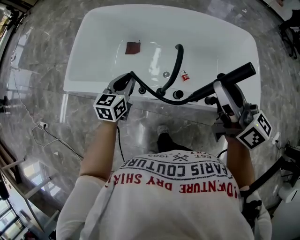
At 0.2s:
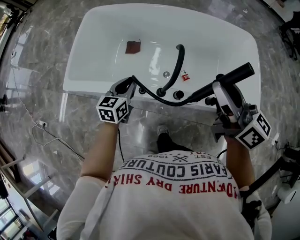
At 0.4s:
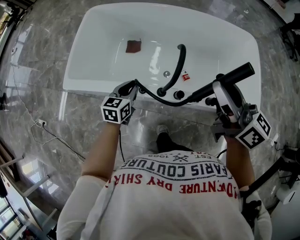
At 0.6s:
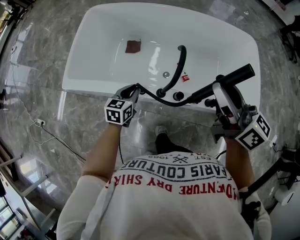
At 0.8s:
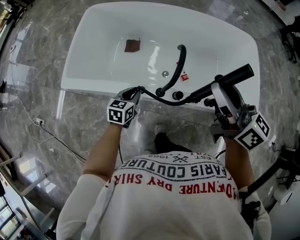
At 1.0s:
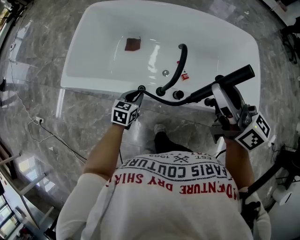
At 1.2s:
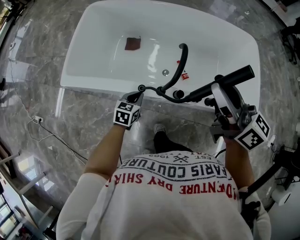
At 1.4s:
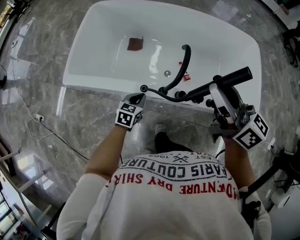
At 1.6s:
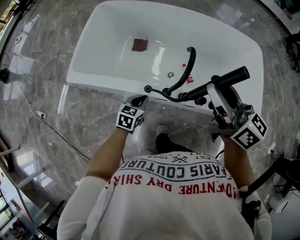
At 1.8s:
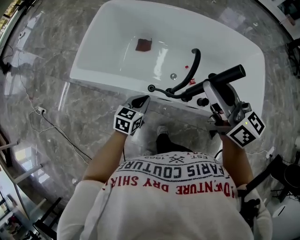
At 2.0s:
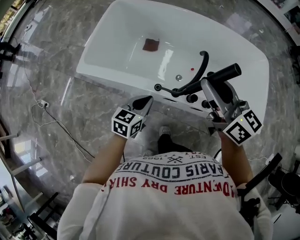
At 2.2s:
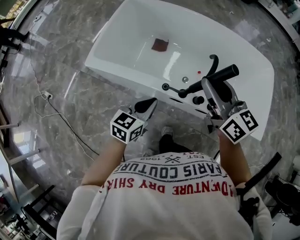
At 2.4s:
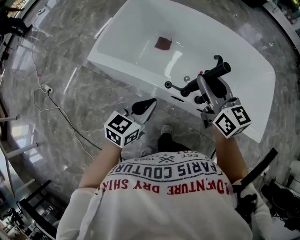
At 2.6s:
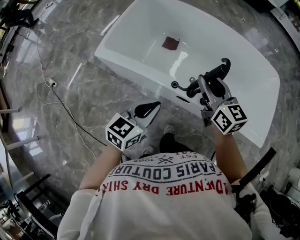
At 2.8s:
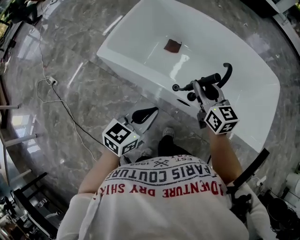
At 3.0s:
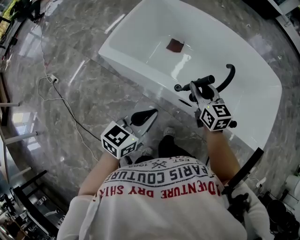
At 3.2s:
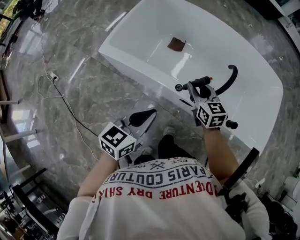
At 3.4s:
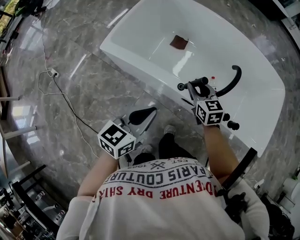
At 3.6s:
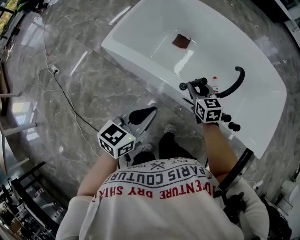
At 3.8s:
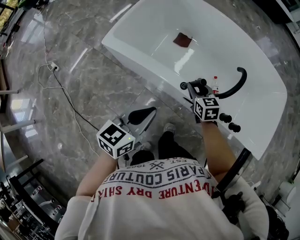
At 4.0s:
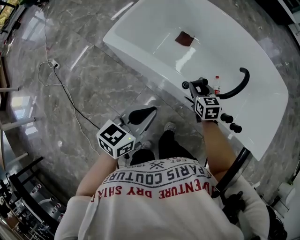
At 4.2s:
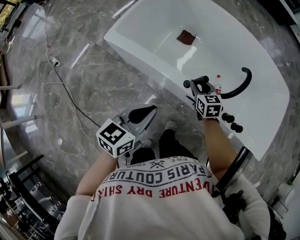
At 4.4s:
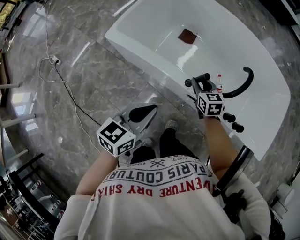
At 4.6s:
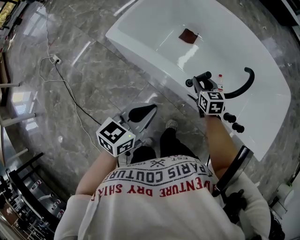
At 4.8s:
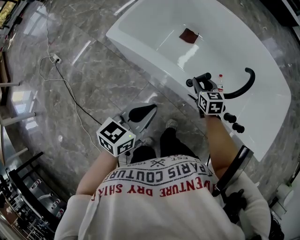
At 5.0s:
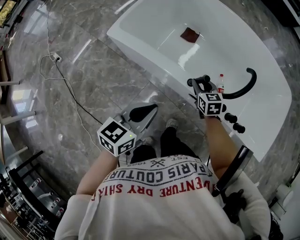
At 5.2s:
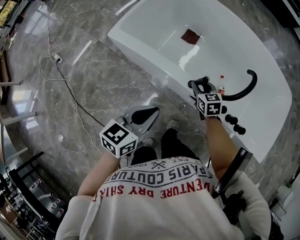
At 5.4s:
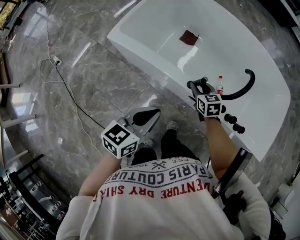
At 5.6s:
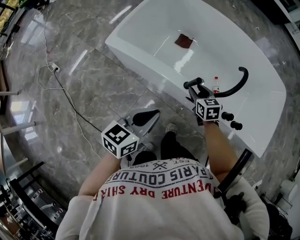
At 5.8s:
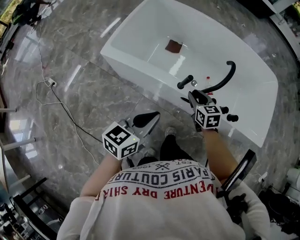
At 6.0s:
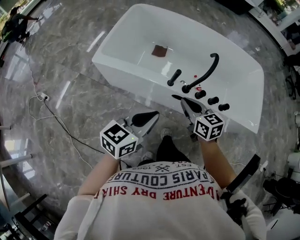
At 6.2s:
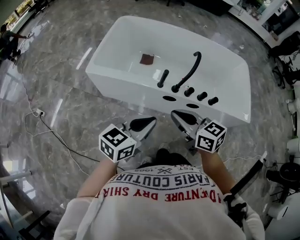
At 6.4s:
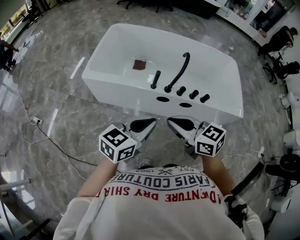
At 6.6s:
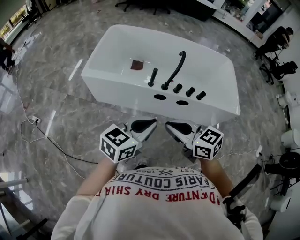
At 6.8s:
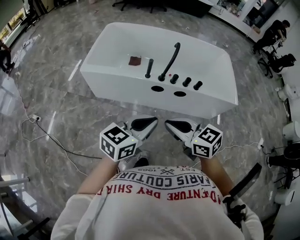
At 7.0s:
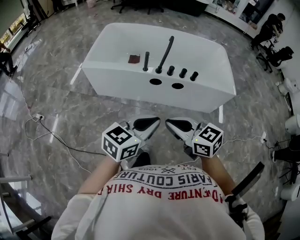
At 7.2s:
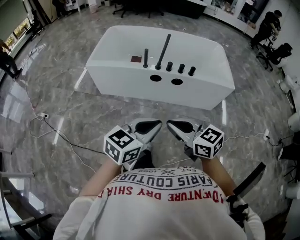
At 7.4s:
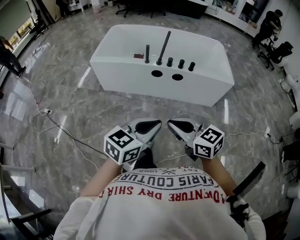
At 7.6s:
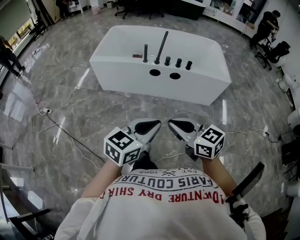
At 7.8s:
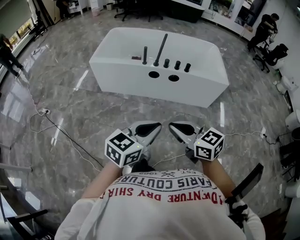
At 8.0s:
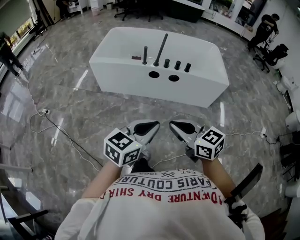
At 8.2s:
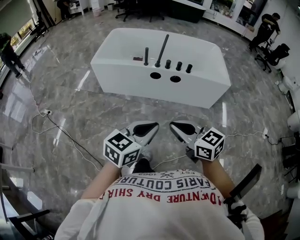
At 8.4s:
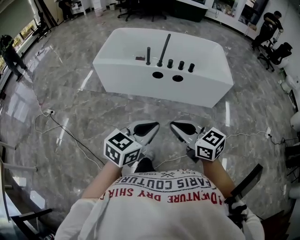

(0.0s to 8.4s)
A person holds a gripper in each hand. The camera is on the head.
0.0s - 1.4s: The left gripper heads downward and backward, covering roughly 15 cm, and changes its angle by some 20 degrees.
1.4s - 2.8s: The left gripper moves upward, backward and to the left, about 25 cm, and rotates some 20 degrees. The right gripper shifts about 20 cm to the left and downward, and rotates approximately 20 degrees.
2.8s - 4.2s: The right gripper goes approximately 20 cm downward, and turns by roughly 20 degrees.
4.2s - 5.6s: The grippers make only small movements.
5.6s - 7.0s: The left gripper moves backward and upward, approximately 35 cm, and turns by approximately 30 degrees. The right gripper travels backward and upward by some 60 cm, turns by approximately 20 degrees, and closes its fingers.
7.0s - 8.4s: Both grippers travel together backward, about 15 cm.

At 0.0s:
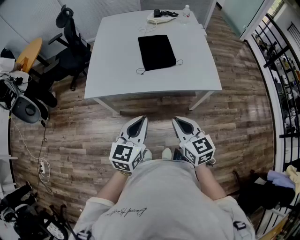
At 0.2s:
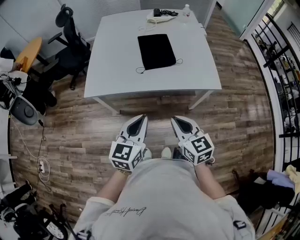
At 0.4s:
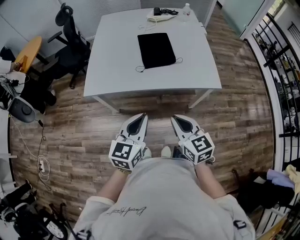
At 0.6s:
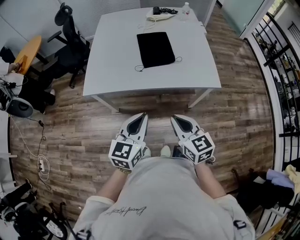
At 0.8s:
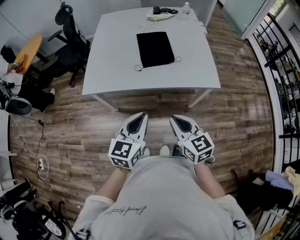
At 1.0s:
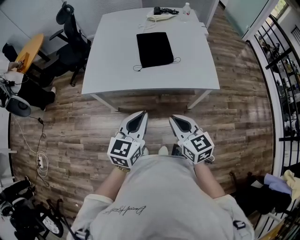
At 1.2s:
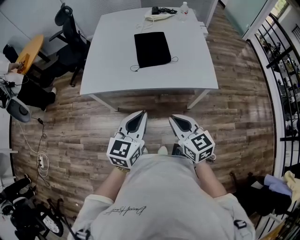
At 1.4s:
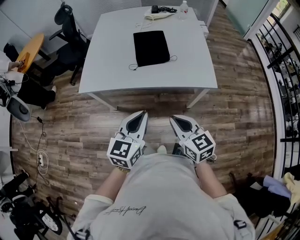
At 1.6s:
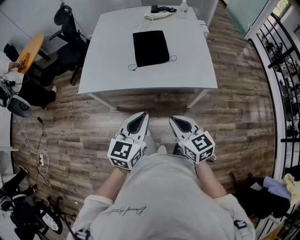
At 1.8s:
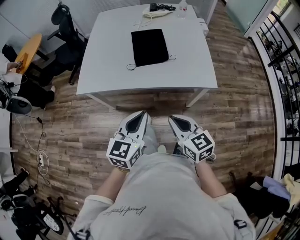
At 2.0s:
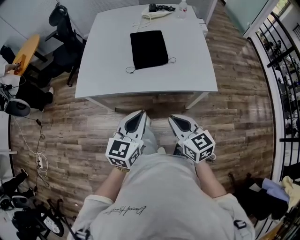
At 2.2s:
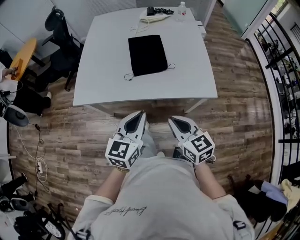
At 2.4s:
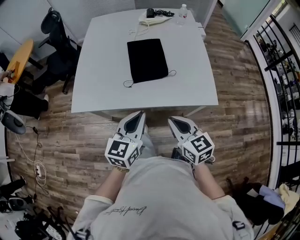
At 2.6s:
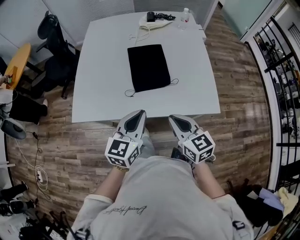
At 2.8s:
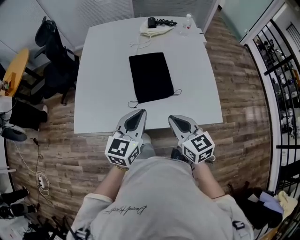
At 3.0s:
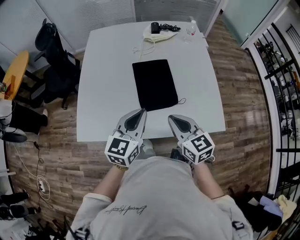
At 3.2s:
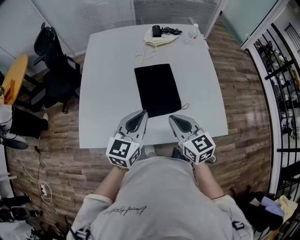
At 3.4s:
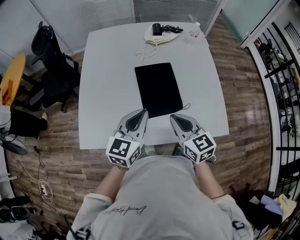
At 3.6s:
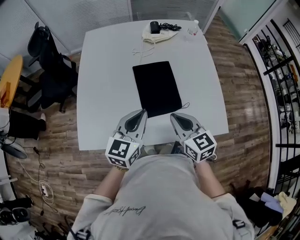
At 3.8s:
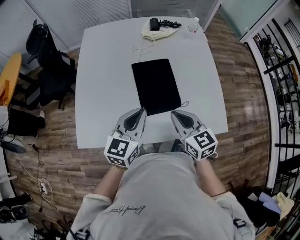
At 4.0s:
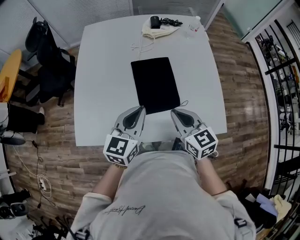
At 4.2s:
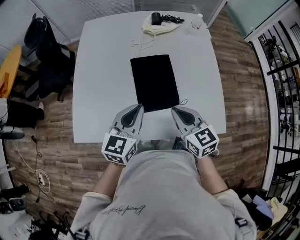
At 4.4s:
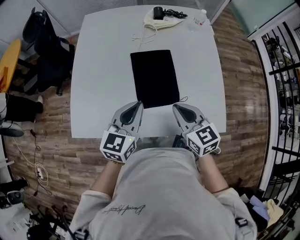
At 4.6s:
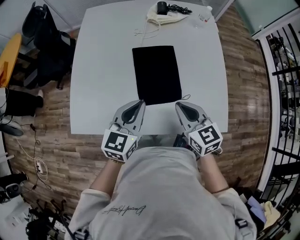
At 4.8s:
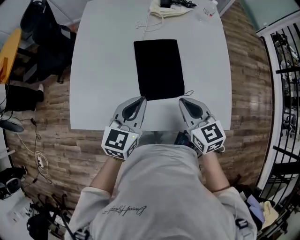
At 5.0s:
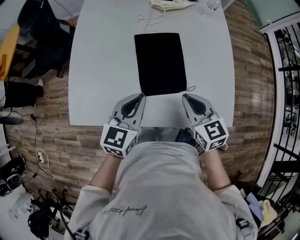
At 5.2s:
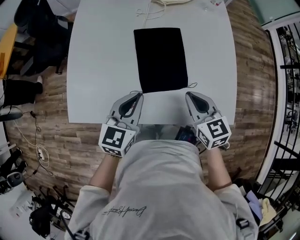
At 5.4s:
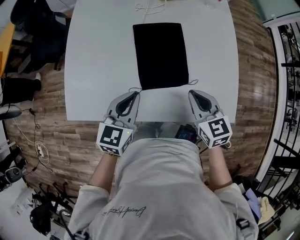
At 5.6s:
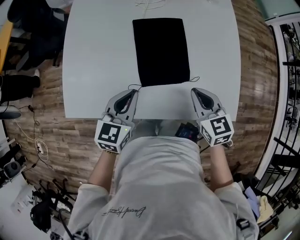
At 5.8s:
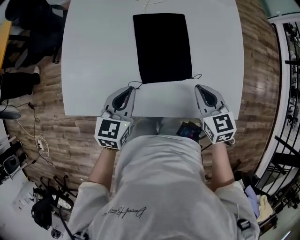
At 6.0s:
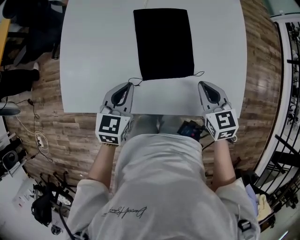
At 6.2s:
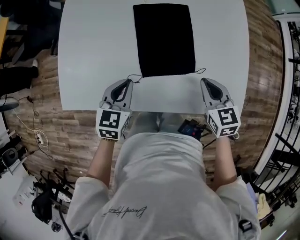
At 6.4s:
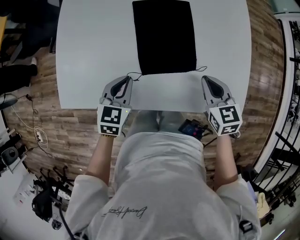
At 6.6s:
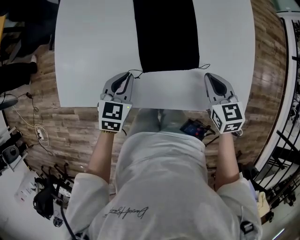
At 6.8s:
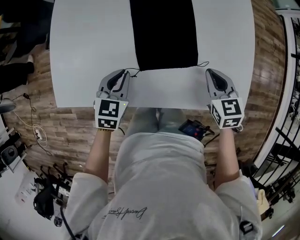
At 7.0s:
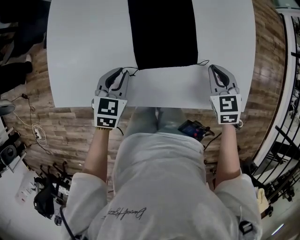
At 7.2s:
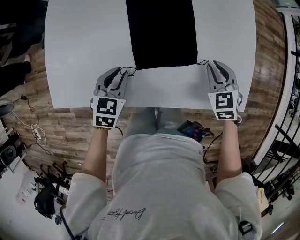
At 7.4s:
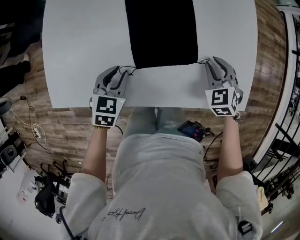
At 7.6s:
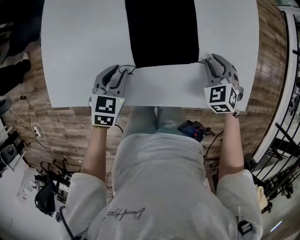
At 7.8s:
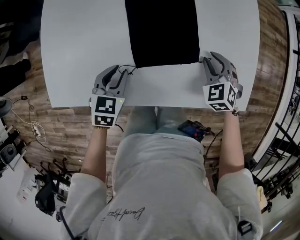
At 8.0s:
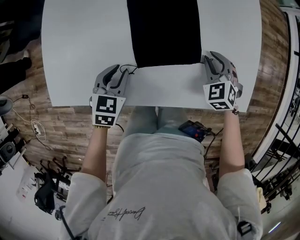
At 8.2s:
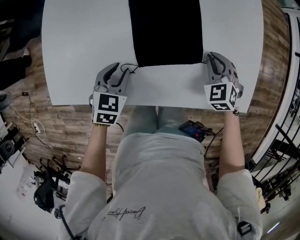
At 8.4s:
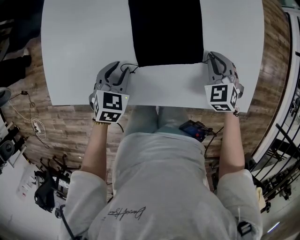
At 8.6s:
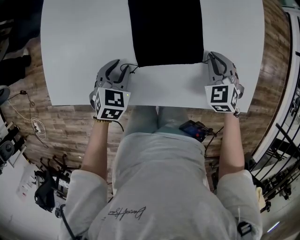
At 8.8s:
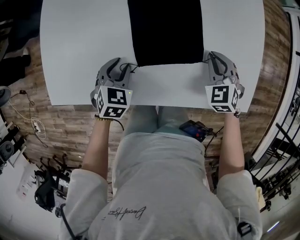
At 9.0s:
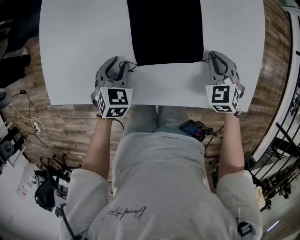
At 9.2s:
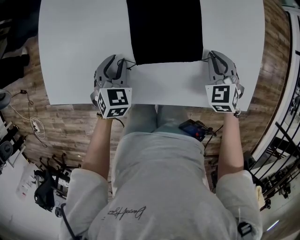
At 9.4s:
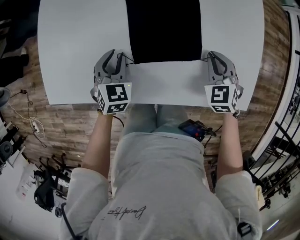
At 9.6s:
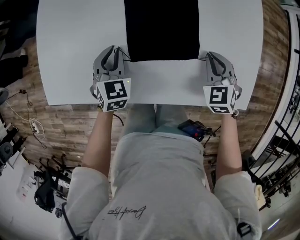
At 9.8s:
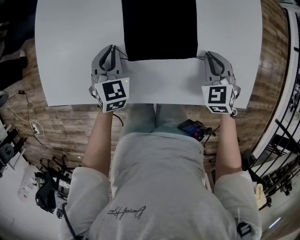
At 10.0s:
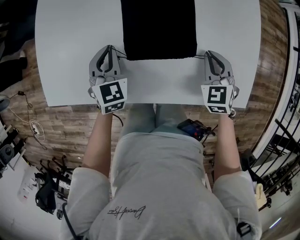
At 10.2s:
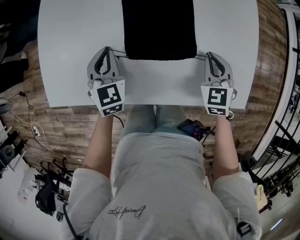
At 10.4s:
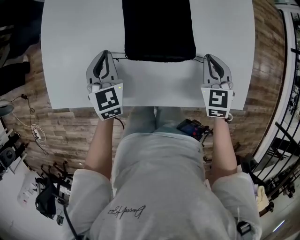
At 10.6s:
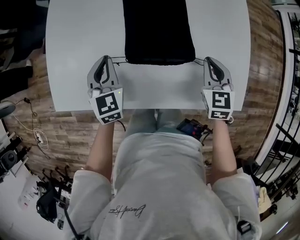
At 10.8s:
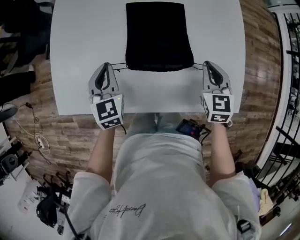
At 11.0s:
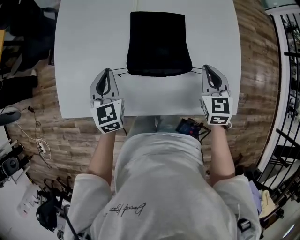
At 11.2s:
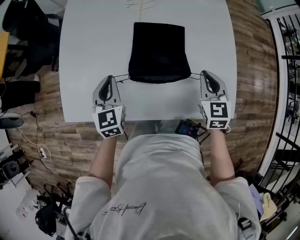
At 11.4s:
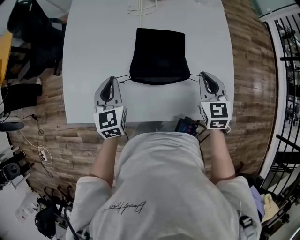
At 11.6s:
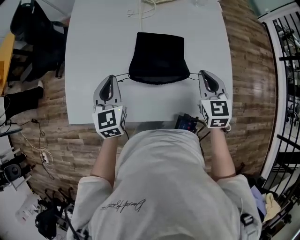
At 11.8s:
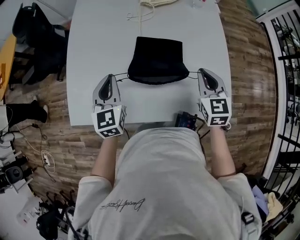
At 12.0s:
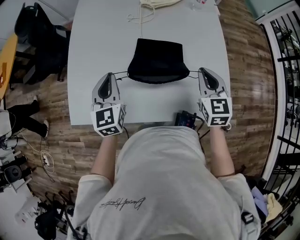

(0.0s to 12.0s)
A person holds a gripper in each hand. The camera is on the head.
0.0s - 1.6s: Both grippers move to the right, approximately 5 cm.
1.6s - 3.0s: Both grippers move forward, approximately 30 cm.
3.0s - 4.4s: The two grippers go approximately 5 cm forward.
4.4s - 6.0s: The right gripper moves downward and to the right, some 10 cm, while the left gripper is displaced downward and to the left by about 15 cm.
6.0s - 7.6s: The two grippers go approximately 10 cm downward. The left gripper opens its fingers, while the right gripper changes its angle by about 40 degrees, and opens its fingers.
7.6s - 9.0s: The right gripper closes its fingers.
9.0s - 10.4s: The left gripper goes approximately 10 cm upward and forward, rotates about 30 degrees, and closes its fingers, while the right gripper changes its angle by roughly 20 degrees.
10.4s - 12.0s: Both grippers move upward, approximately 15 cm.

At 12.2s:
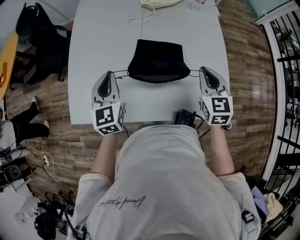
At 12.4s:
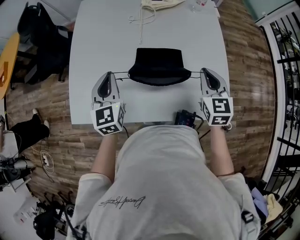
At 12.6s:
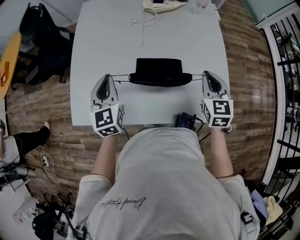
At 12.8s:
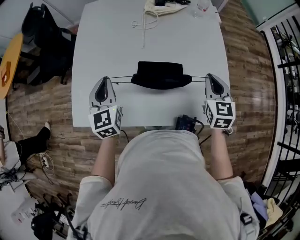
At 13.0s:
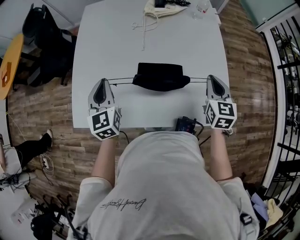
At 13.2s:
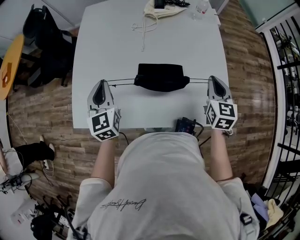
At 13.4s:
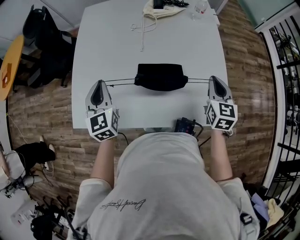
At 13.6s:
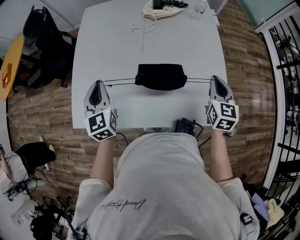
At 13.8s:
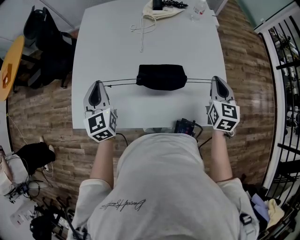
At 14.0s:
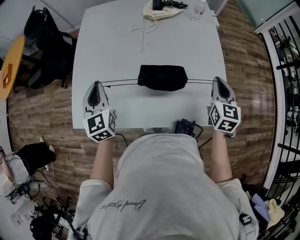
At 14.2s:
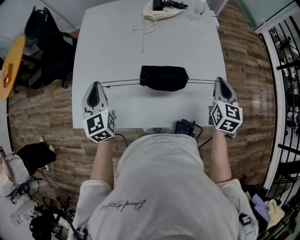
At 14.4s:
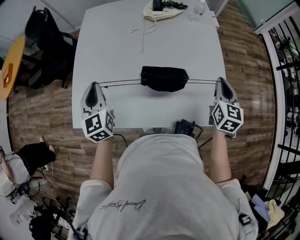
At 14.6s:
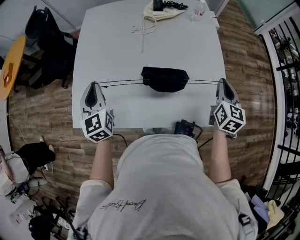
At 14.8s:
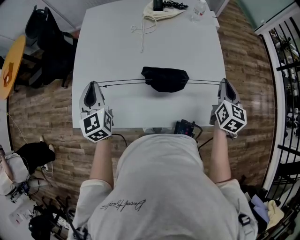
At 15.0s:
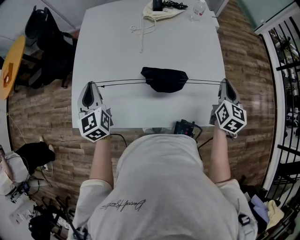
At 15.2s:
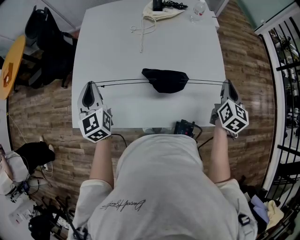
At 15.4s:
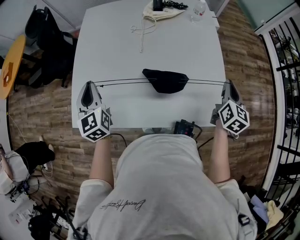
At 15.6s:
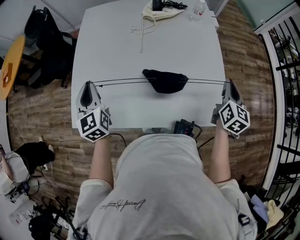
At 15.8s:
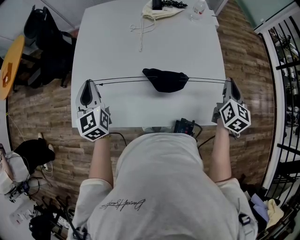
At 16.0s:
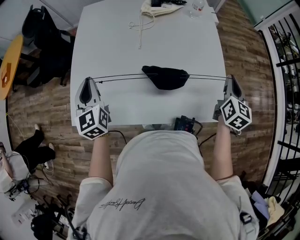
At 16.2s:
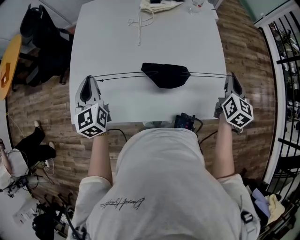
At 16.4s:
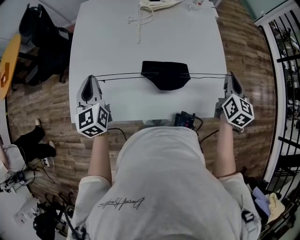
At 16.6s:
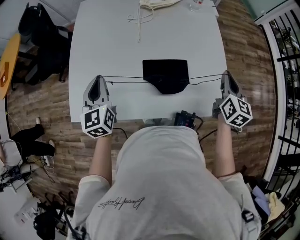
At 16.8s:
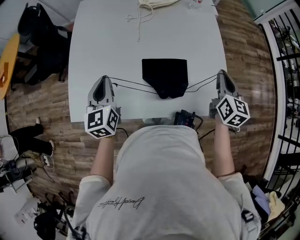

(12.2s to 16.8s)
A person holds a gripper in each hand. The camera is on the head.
12.2s - 13.8s: The left gripper goes approximately 5 cm to the left. The right gripper moves to the right, roughly 5 cm.
13.8s - 15.2s: The right gripper shifts approximately 5 cm to the right.
15.2s - 16.8s: The left gripper shifts roughly 5 cm to the right.
